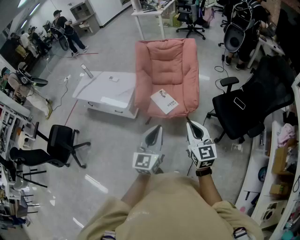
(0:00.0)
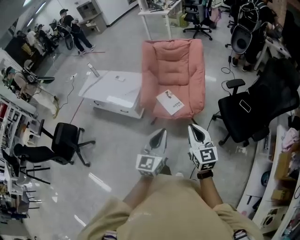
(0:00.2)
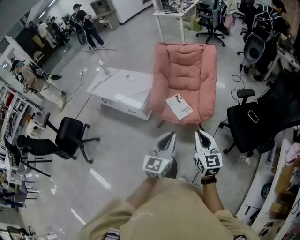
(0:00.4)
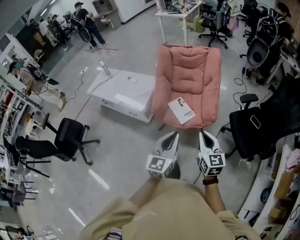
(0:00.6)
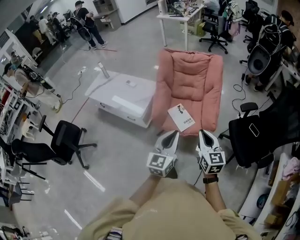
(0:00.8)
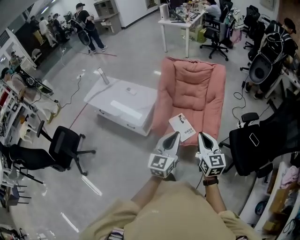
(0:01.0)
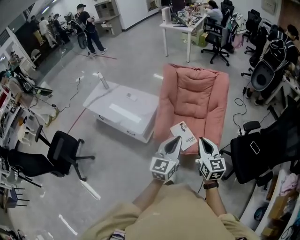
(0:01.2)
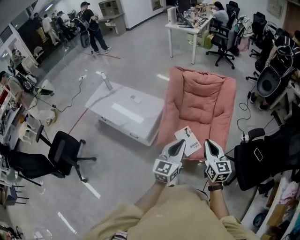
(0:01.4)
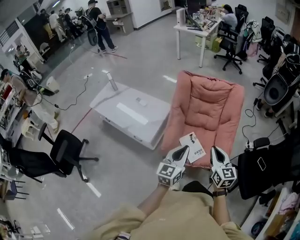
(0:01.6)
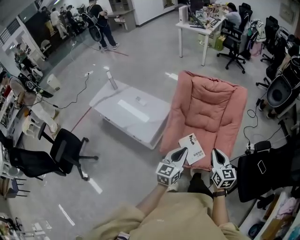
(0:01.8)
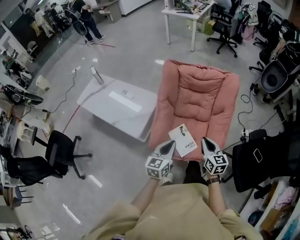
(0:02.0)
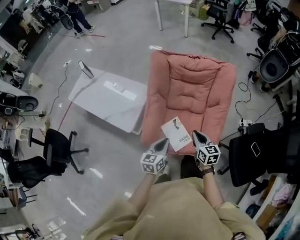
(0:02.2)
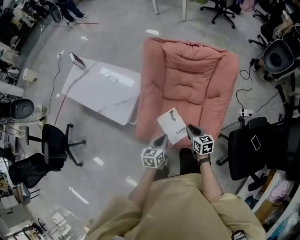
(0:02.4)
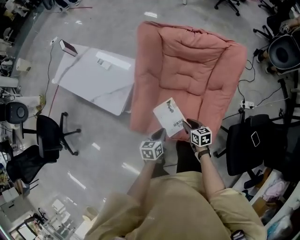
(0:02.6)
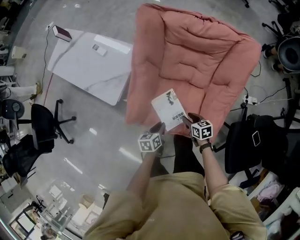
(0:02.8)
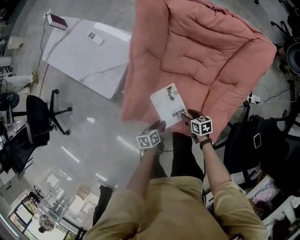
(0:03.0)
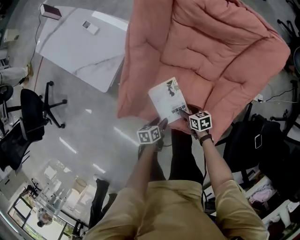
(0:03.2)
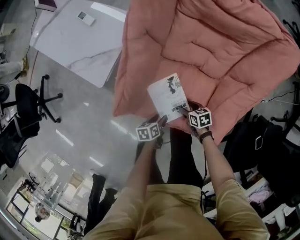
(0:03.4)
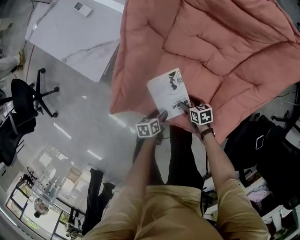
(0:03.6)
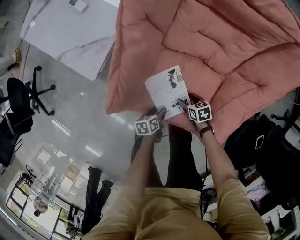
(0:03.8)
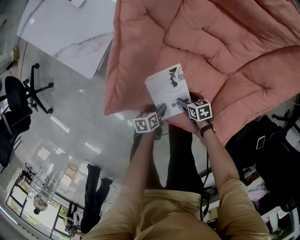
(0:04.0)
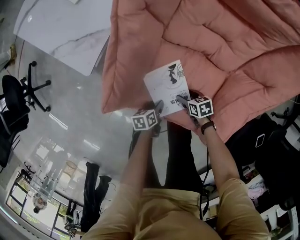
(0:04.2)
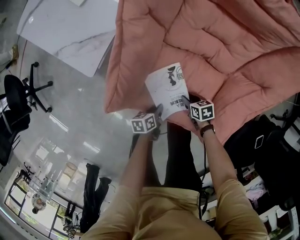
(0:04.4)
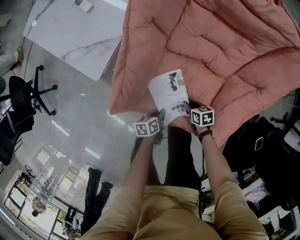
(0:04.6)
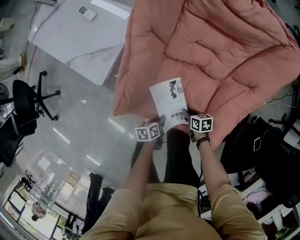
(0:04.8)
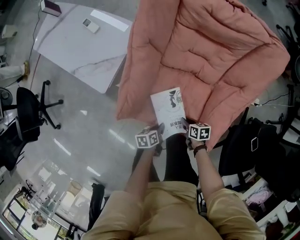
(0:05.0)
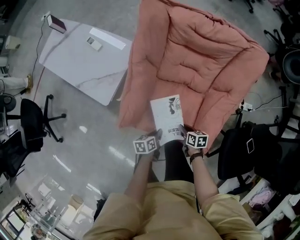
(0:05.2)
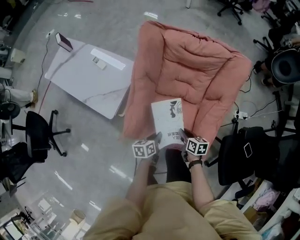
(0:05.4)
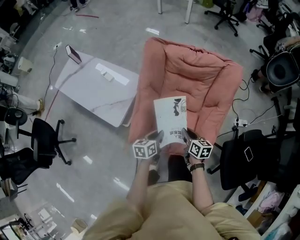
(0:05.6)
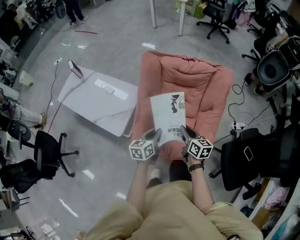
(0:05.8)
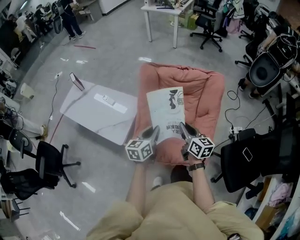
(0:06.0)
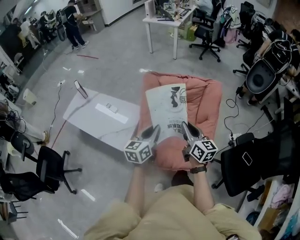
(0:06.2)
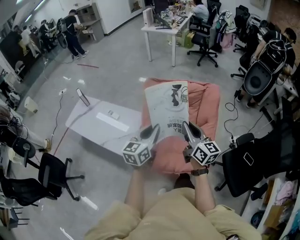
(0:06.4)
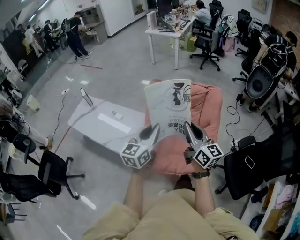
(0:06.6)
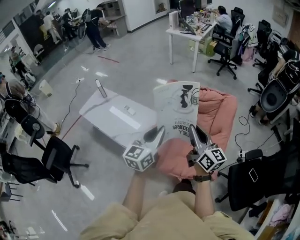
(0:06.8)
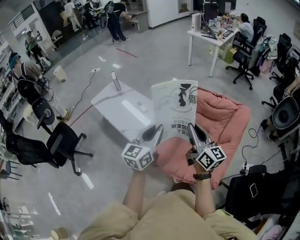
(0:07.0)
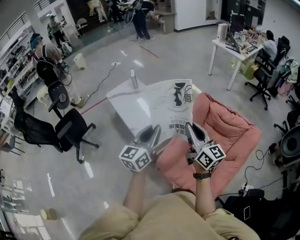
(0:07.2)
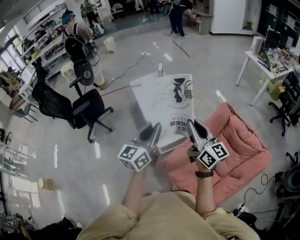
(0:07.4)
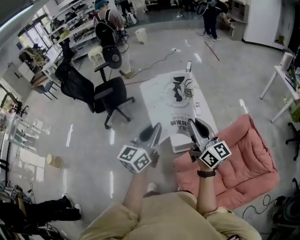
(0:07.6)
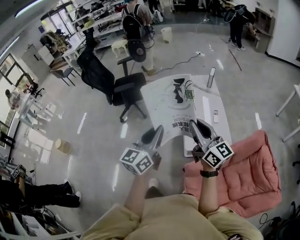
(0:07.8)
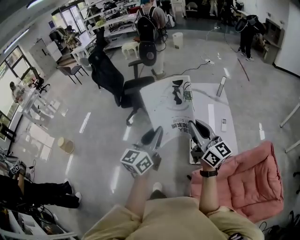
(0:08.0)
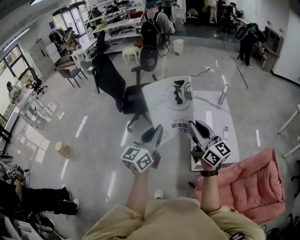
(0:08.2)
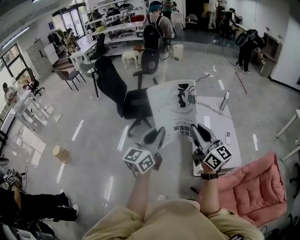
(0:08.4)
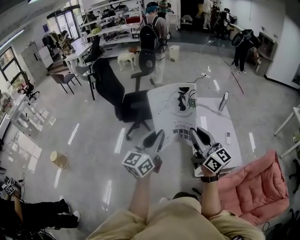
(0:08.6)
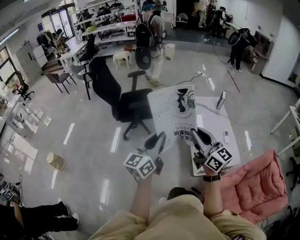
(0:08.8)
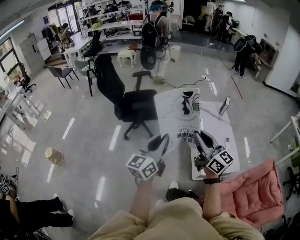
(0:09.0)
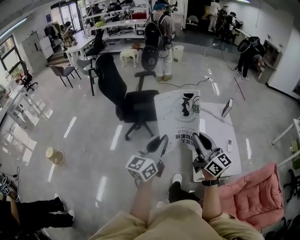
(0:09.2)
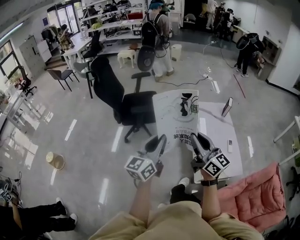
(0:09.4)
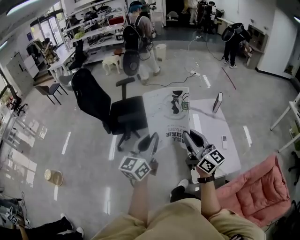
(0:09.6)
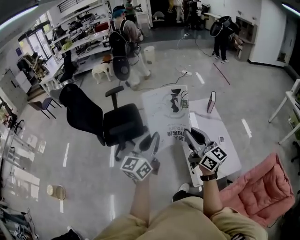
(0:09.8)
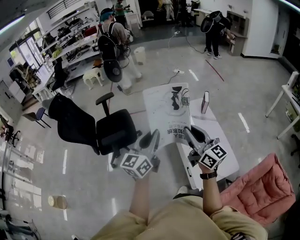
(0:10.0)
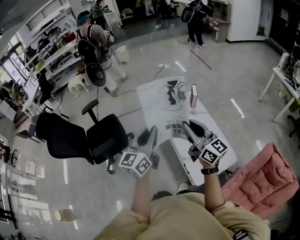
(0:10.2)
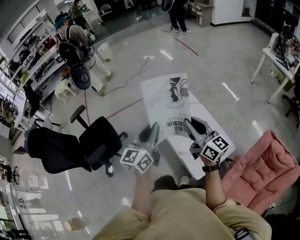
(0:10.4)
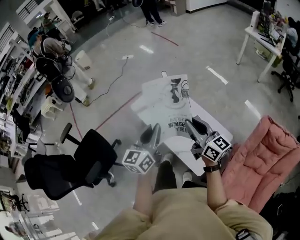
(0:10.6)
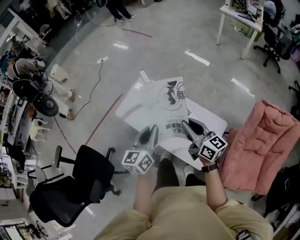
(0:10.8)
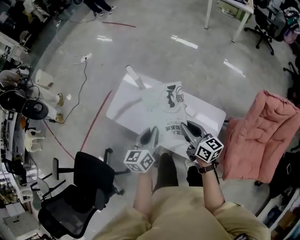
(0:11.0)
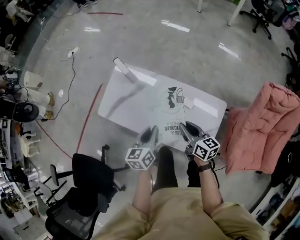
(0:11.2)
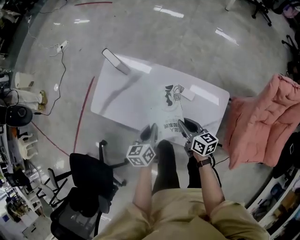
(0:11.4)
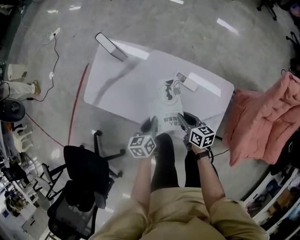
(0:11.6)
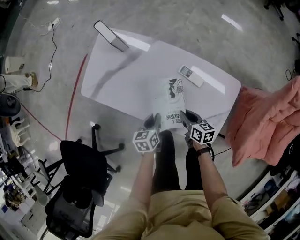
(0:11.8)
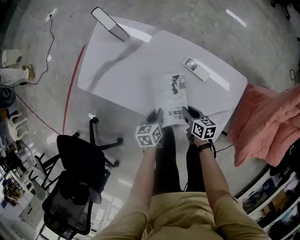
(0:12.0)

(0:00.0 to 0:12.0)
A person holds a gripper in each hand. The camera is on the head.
0:00.0 - 0:01.6: Both grippers move forward, approximately 35 cm.
0:01.6 - 0:03.0: Both grippers move downward, about 50 cm. The left gripper angles its fingers downward, by some 40 degrees, and opens its fingers; the right gripper tilts its fingers roughly 40 degrees downward, and opens.
0:03.0 - 0:04.4: The two grippers go roughly 15 cm downward. The left gripper opens, then closes once more.
0:04.4 - 0:06.0: The two grippers go roughly 60 cm upward. The left gripper tips its fingers upward by about 30 degrees, while the right gripper tips its fingers upward by roughly 40 degrees.
0:06.0 - 0:07.6: The right gripper moves roughly 40 cm, and swivels approximately 70 degrees. Meanwhile the left gripper ends up roughly 35 cm from where it was, and swivels about 60 degrees.
0:07.6 - 0:09.0: The pair of grippers is taken to the left and forward, about 50 cm.
0:09.0 - 0:10.4: The pair of grippers is taken some 50 cm. The right gripper swivels about 30 degrees, while the left gripper swivels approximately 20 degrees.
0:10.4 - 0:12.0: Both grippers move downward, about 60 cm. The right gripper tilts its fingers roughly 60 degrees downward. The left gripper tips its fingers downward by about 50 degrees.

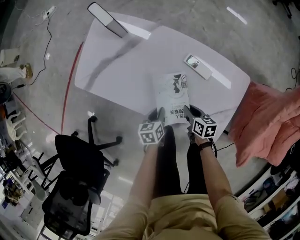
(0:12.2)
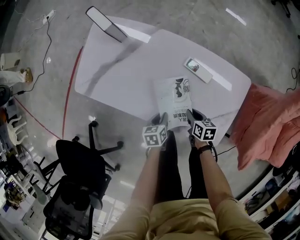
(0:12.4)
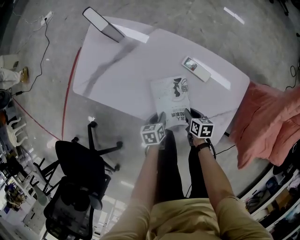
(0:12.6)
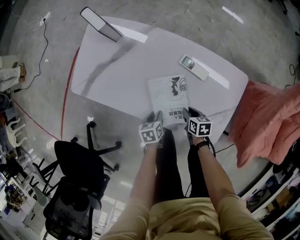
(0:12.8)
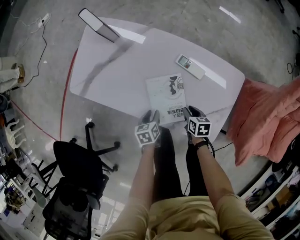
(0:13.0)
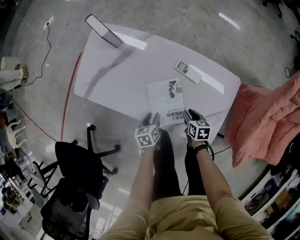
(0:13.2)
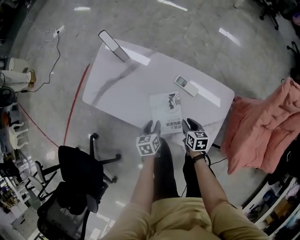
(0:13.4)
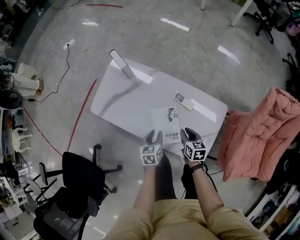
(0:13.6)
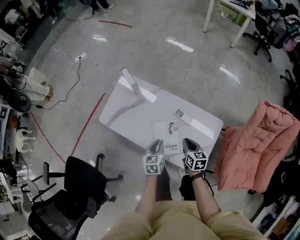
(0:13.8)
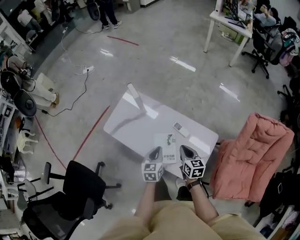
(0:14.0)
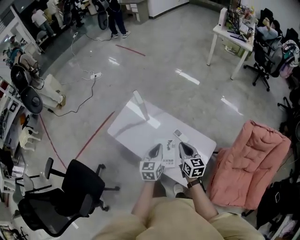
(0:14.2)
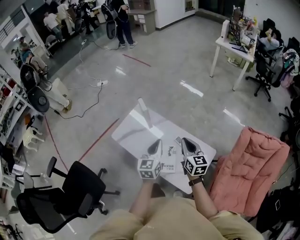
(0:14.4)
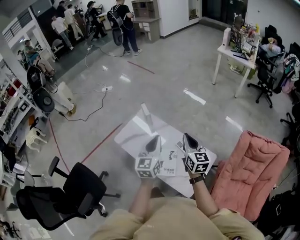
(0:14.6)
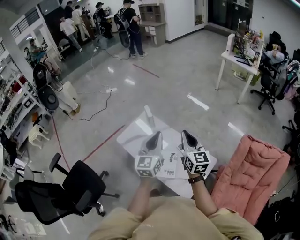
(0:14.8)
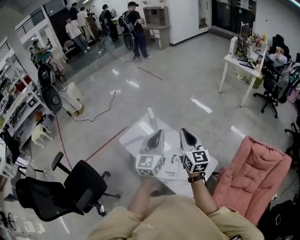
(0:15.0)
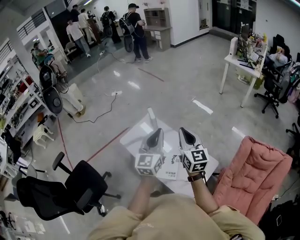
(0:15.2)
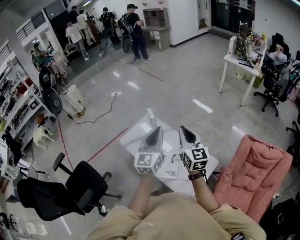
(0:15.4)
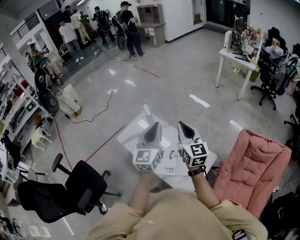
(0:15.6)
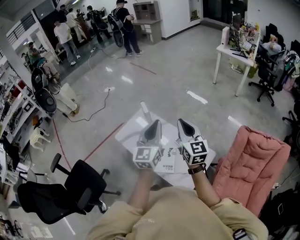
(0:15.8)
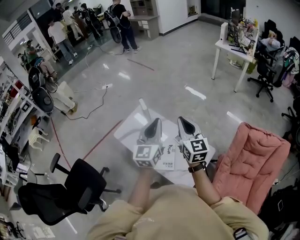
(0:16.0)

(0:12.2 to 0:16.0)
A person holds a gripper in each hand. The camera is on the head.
0:12.2 - 0:13.4: The two grippers go some 10 cm upward.
0:13.4 - 0:14.8: The two grippers go approximately 60 cm upward. The left gripper angles its fingers upward, by roughly 50 degrees, and closes its fingers. The right gripper angles its fingers upward, by approximately 50 degrees, and closes its fingers.
0:14.8 - 0:16.0: There are only small adjustments of the grippers.

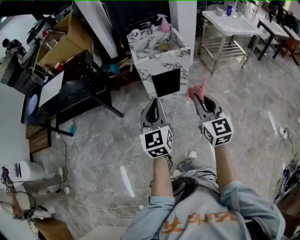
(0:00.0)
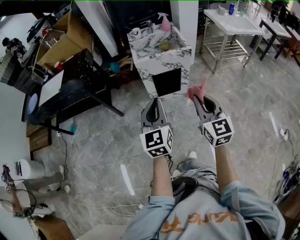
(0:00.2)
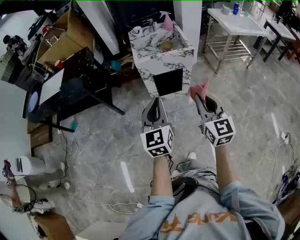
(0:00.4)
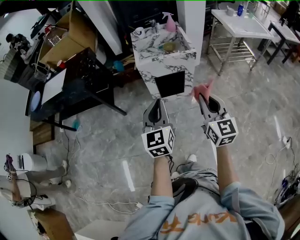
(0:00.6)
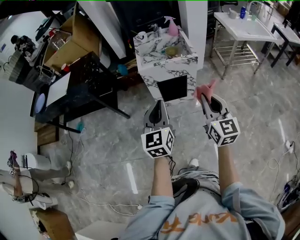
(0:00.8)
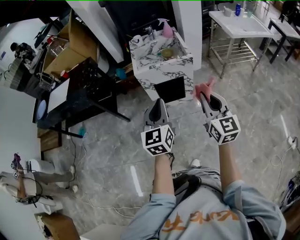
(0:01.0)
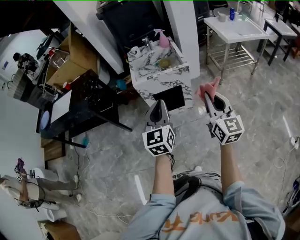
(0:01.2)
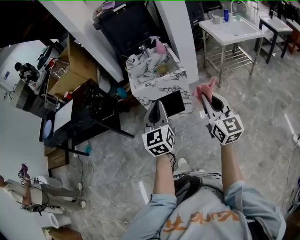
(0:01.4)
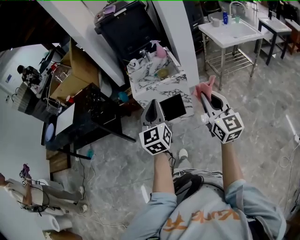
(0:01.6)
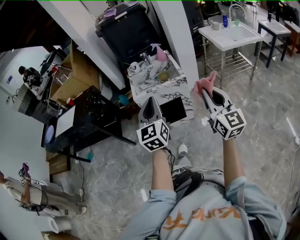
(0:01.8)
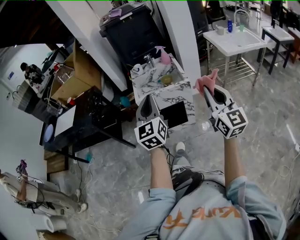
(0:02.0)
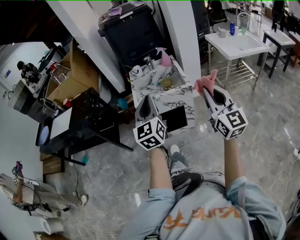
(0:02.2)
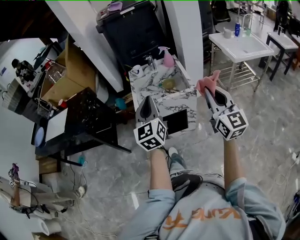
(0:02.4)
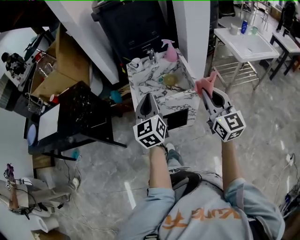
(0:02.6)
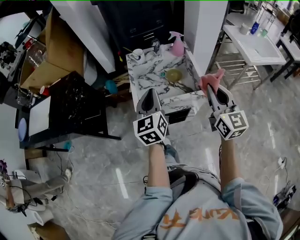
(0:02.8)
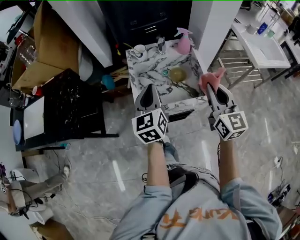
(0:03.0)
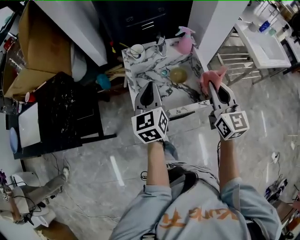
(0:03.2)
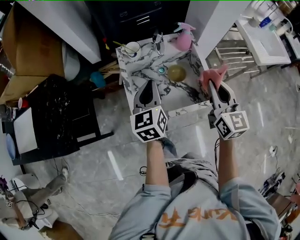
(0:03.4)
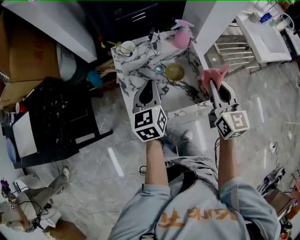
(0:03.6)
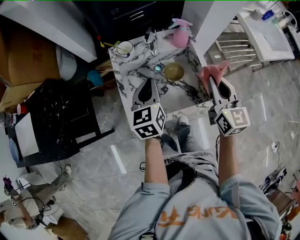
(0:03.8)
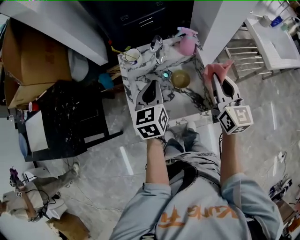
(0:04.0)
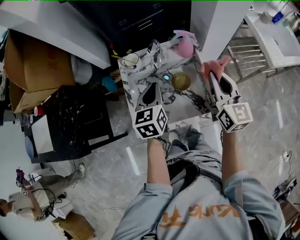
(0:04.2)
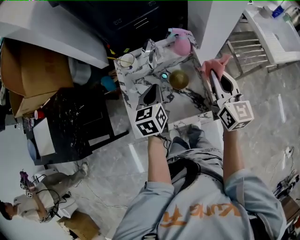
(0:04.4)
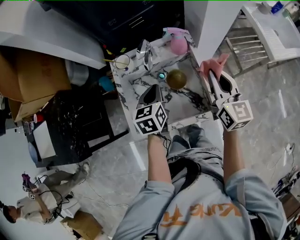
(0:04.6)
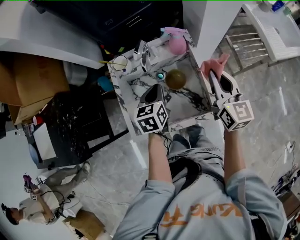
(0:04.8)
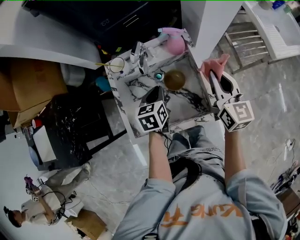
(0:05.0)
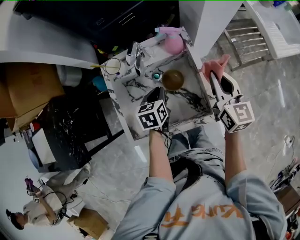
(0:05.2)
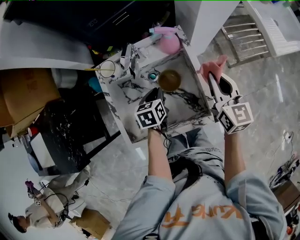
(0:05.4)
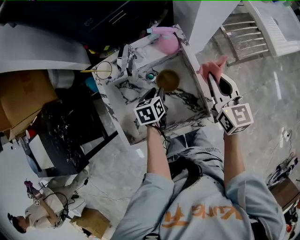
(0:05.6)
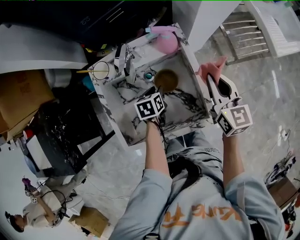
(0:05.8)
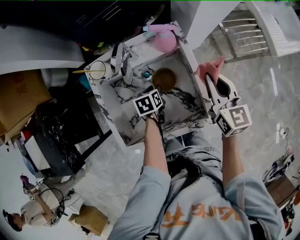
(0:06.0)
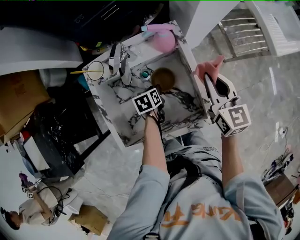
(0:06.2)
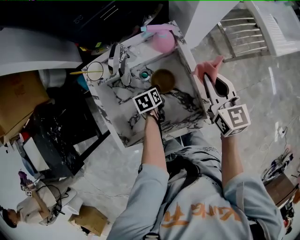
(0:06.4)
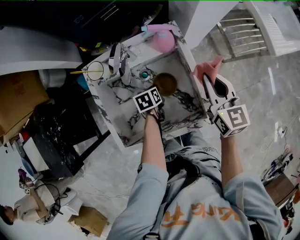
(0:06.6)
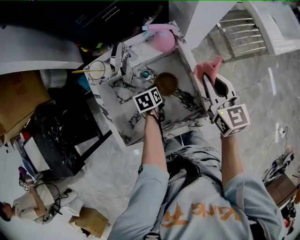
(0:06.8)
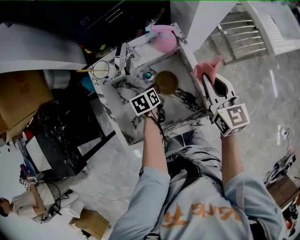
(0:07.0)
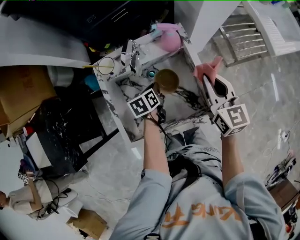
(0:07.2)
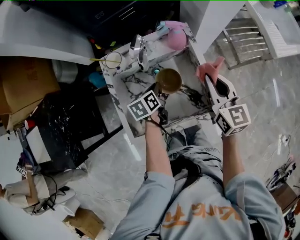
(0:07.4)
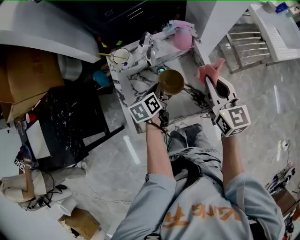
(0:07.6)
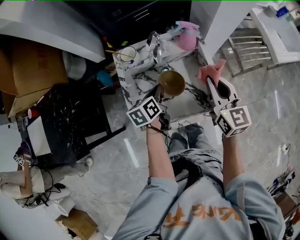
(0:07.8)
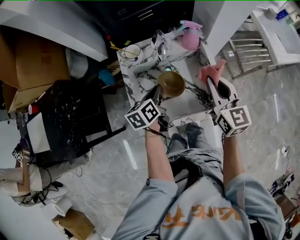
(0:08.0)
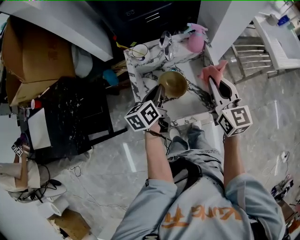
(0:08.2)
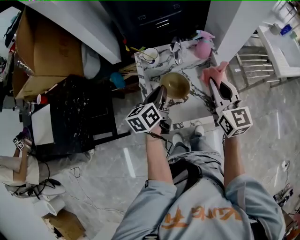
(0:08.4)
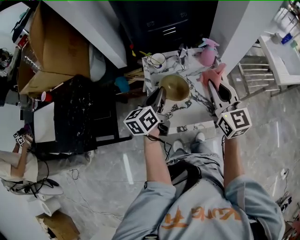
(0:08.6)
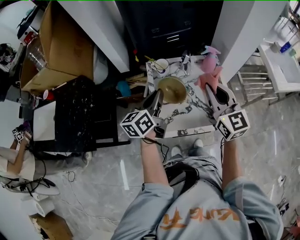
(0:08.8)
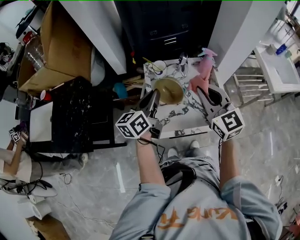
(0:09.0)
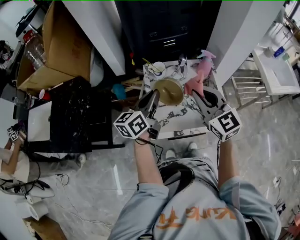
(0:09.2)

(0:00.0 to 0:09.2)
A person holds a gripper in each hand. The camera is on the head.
0:00.0 - 0:01.6: The grippers both shift to the right and forward by approximately 20 cm.
0:01.6 - 0:03.0: The two grippers travel together, forward, roughly 40 cm.
0:03.0 - 0:04.6: The left gripper moves forward, downward and to the right, roughly 20 cm, and swivels about 30 degrees, while the right gripper shifts about 20 cm forward, to the right and downward.
0:04.6 - 0:06.2: The right gripper is displaced downward by roughly 10 cm. The left gripper travels downward by approximately 25 cm, rotates roughly 30 degrees, and opens.
0:06.2 - 0:07.6: The left gripper goes some 15 cm upward, swivels about 20 degrees, and closes its fingers; the right gripper shifts approximately 10 cm to the left, backward and upward.
0:07.6 - 0:09.2: The right gripper travels to the left and upward by some 20 cm, and swivels roughly 30 degrees. The left gripper is displaced upward and to the left by approximately 25 cm, and tilts its fingers about 40 degrees upward.
